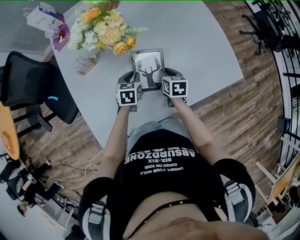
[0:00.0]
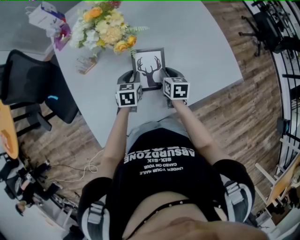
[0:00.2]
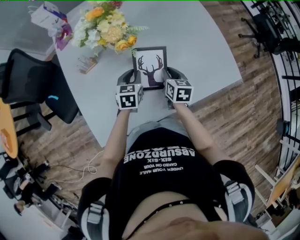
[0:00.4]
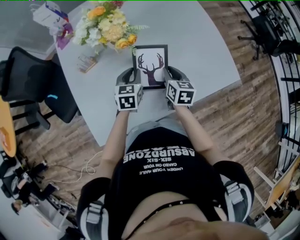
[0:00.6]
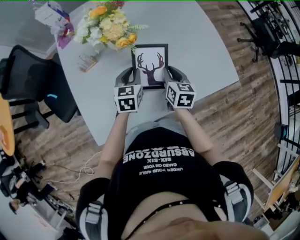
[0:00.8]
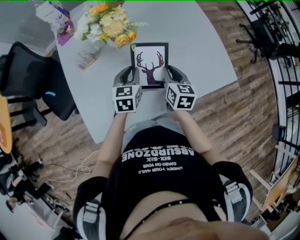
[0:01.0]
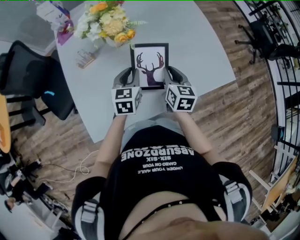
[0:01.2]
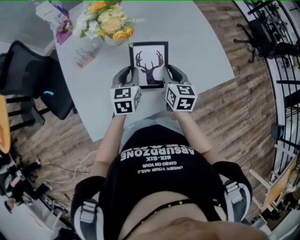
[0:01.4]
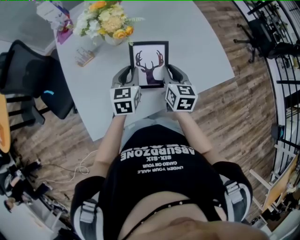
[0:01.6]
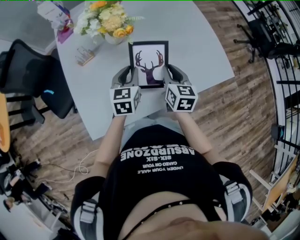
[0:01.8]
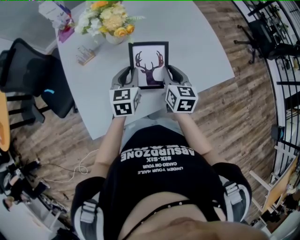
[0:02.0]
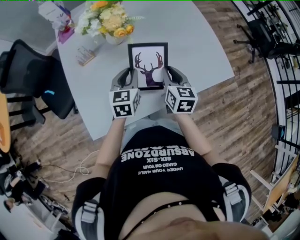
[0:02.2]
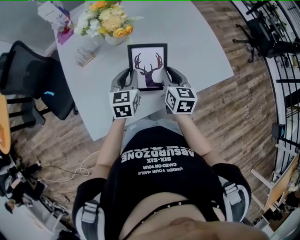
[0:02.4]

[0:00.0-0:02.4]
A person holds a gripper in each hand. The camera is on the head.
0:00.0 to 0:01.2: The two grippers go some 15 cm upward.
0:01.2 to 0:02.4: The grippers move only a little.

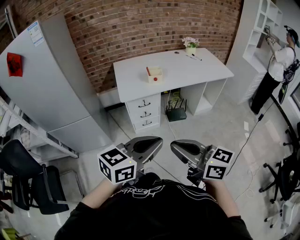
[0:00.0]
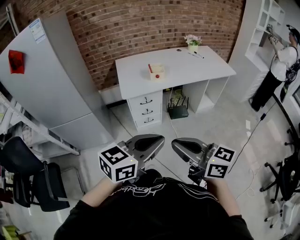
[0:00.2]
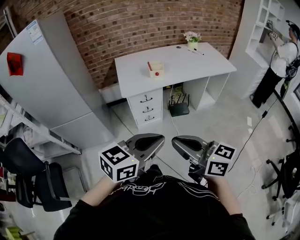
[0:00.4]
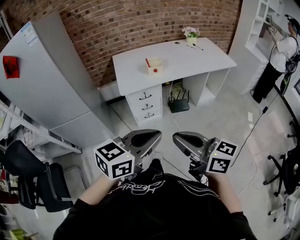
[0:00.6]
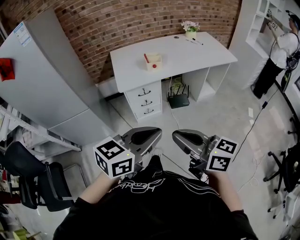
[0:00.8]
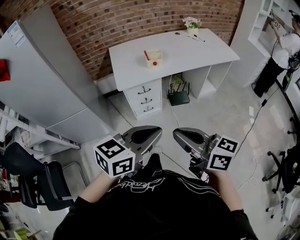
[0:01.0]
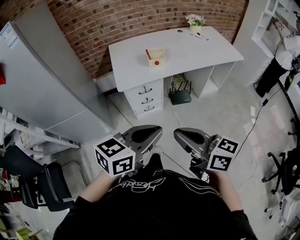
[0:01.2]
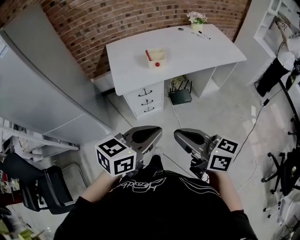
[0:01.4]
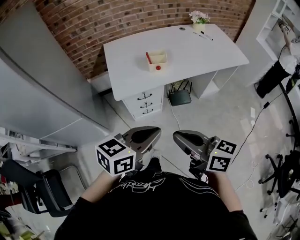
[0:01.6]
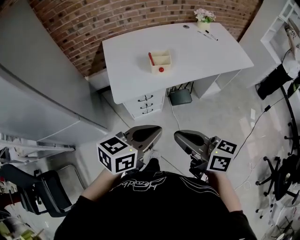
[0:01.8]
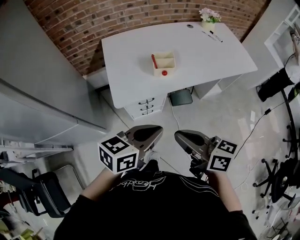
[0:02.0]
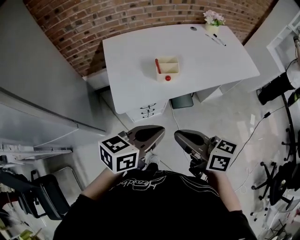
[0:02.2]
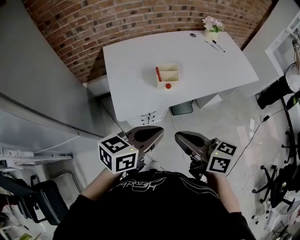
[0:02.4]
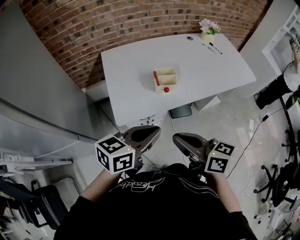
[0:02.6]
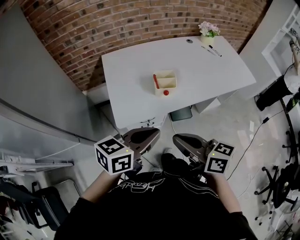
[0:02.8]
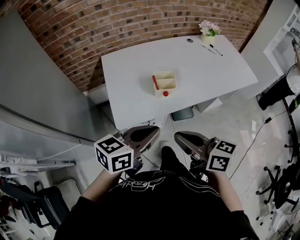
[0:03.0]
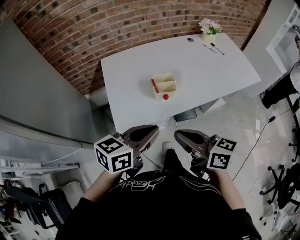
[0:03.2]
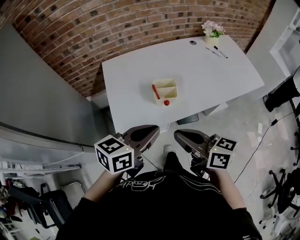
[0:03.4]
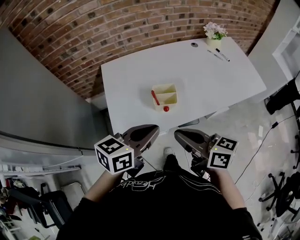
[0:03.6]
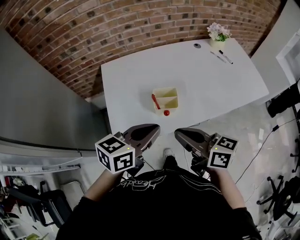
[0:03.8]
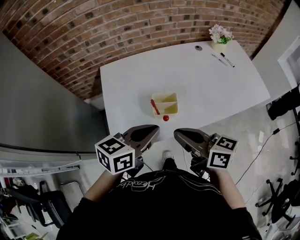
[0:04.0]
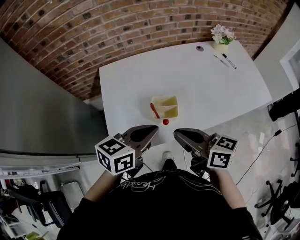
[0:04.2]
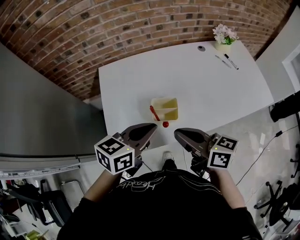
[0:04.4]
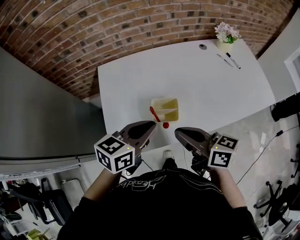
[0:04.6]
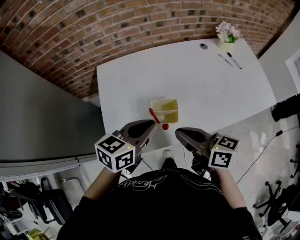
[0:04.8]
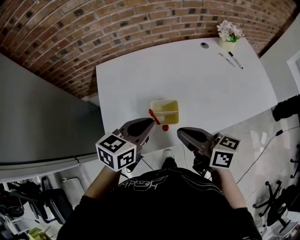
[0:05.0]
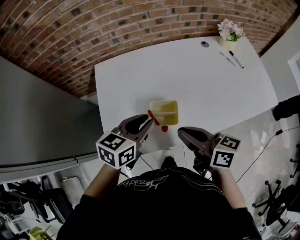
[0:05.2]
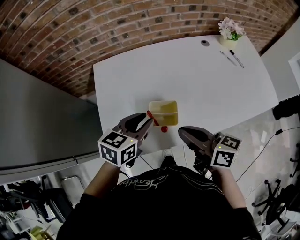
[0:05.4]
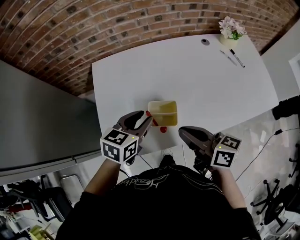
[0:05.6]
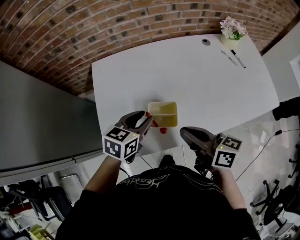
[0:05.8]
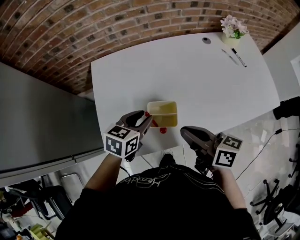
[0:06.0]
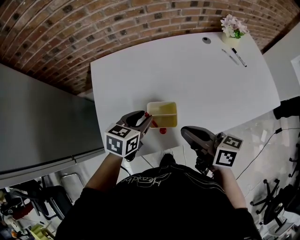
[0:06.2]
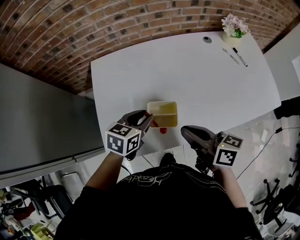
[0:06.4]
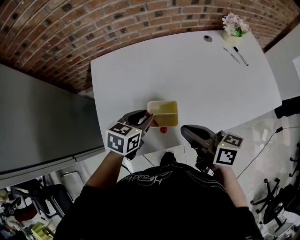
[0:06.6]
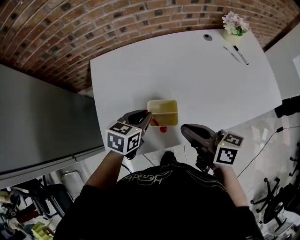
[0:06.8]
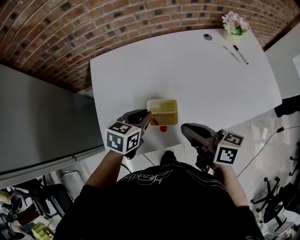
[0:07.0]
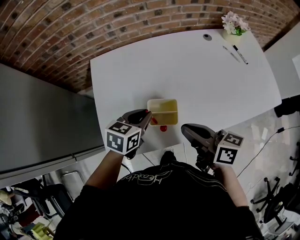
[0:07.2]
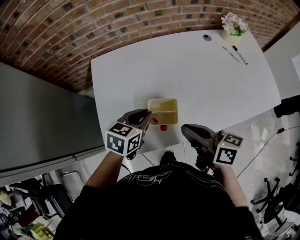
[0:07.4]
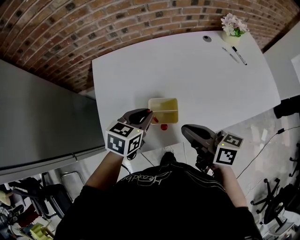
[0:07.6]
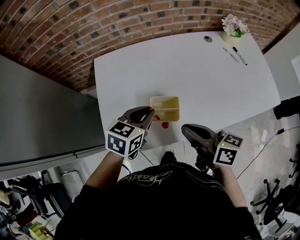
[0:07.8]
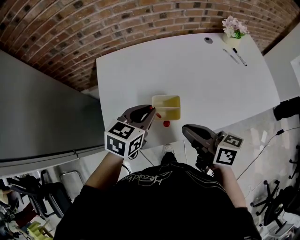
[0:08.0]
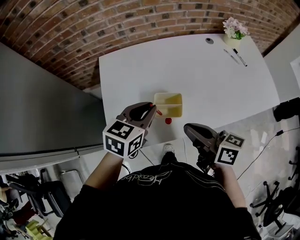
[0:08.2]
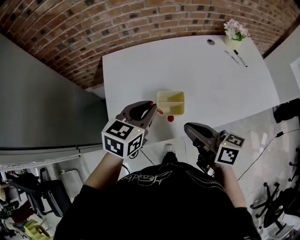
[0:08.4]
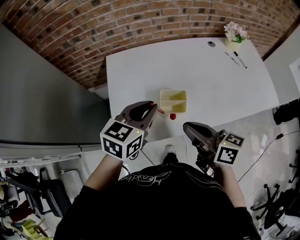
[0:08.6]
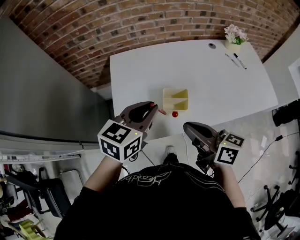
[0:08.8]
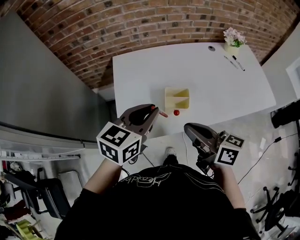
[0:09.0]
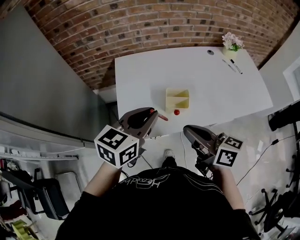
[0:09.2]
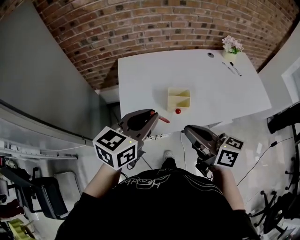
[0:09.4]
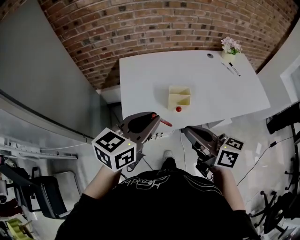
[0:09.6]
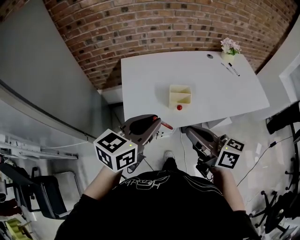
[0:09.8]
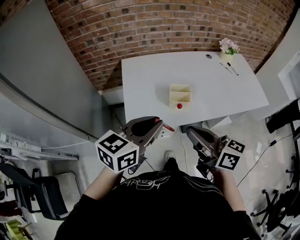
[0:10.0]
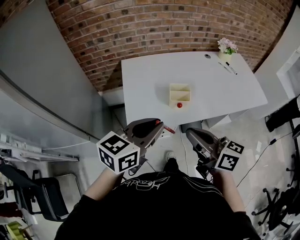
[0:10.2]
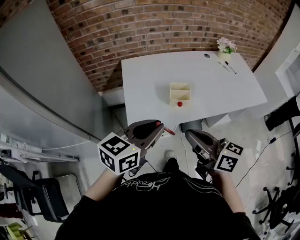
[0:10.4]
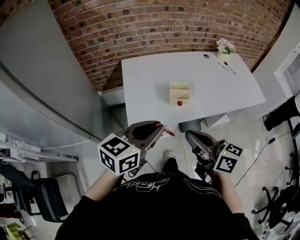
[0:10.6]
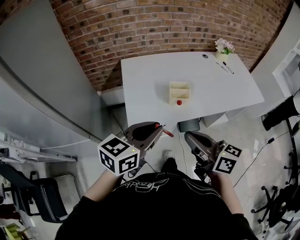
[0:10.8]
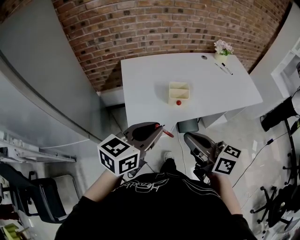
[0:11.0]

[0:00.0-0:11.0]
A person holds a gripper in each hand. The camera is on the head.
0:00.0 to 0:01.6: Both grippers travel together forward, approximately 20 cm.
0:01.6 to 0:03.2: The grippers both shift forward by some 20 cm.
0:03.2 to 0:04.8: The two grippers go some 20 cm forward.
0:04.8 to 0:06.2: The right gripper ends up roughly 5 cm from where it was; the left gripper heads downward and forward, covering some 10 cm, and opens its fingers.
0:06.2 to 0:07.8: There are only small adjustments of the grippers.
0:07.8 to 0:09.4: The right gripper shifts roughly 15 cm backward, upward and to the left. The left gripper travels upward, backward and to the left by roughly 20 cm, and changes its angle by roughly 20 degrees.
0:09.4 to 0:11.0: The two grippers go about 10 cm backward.

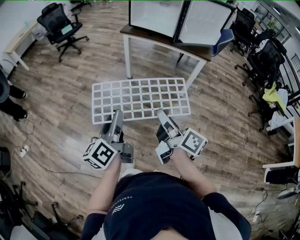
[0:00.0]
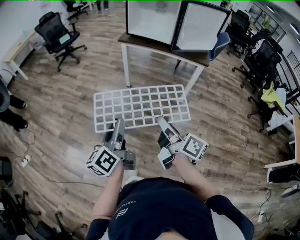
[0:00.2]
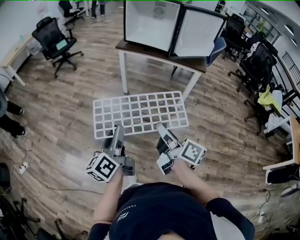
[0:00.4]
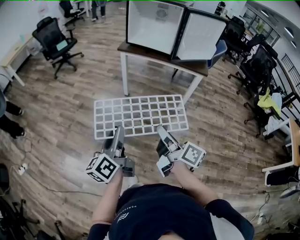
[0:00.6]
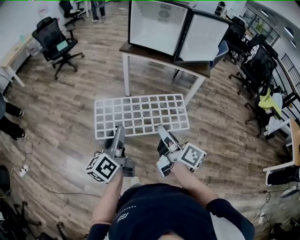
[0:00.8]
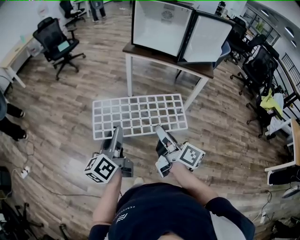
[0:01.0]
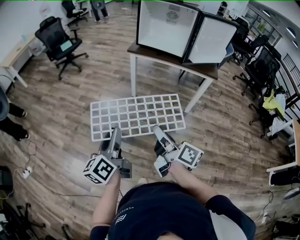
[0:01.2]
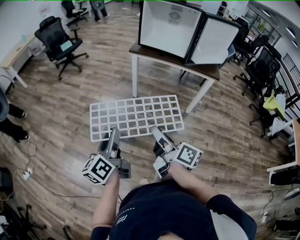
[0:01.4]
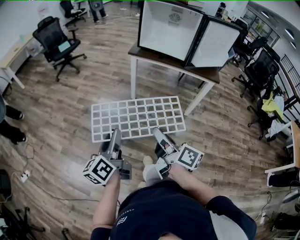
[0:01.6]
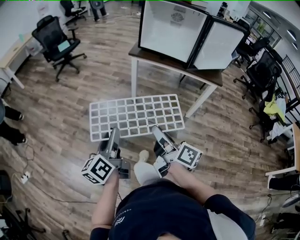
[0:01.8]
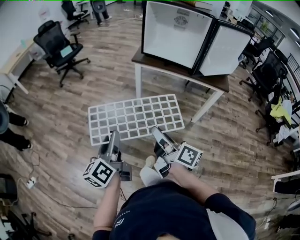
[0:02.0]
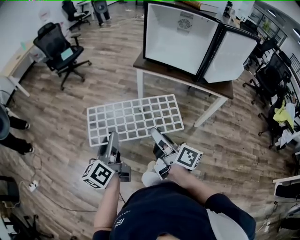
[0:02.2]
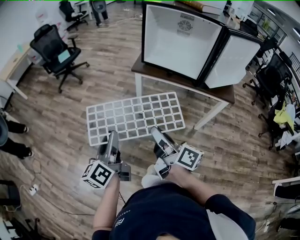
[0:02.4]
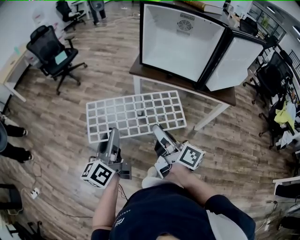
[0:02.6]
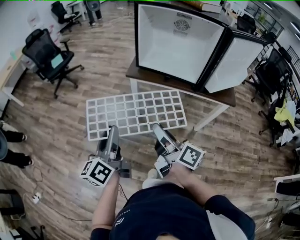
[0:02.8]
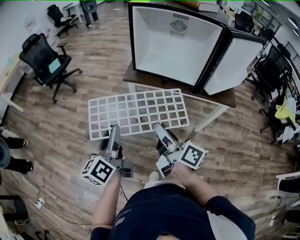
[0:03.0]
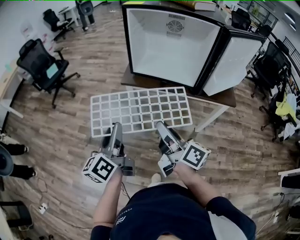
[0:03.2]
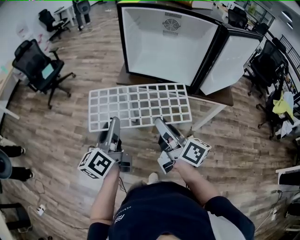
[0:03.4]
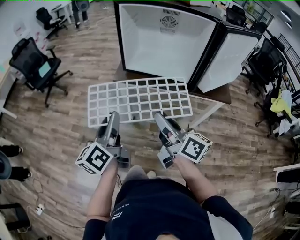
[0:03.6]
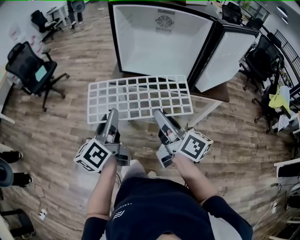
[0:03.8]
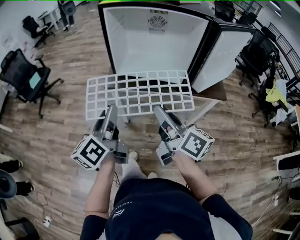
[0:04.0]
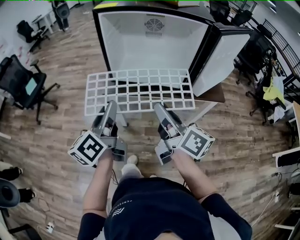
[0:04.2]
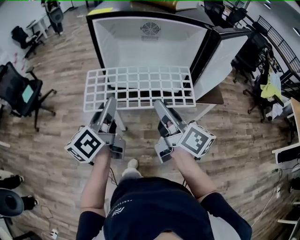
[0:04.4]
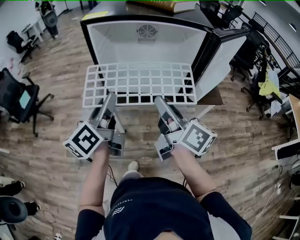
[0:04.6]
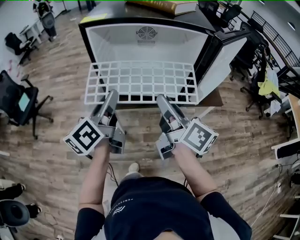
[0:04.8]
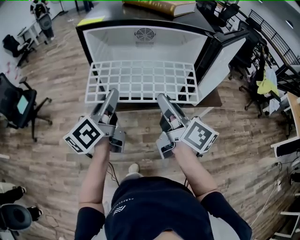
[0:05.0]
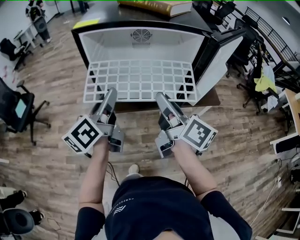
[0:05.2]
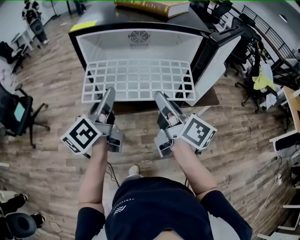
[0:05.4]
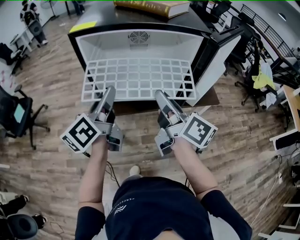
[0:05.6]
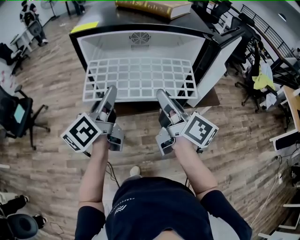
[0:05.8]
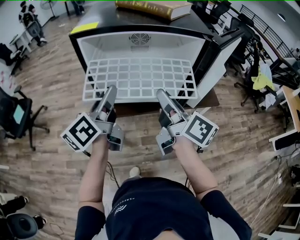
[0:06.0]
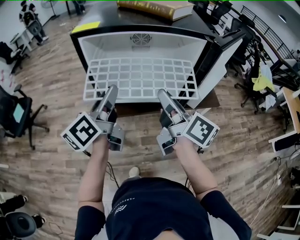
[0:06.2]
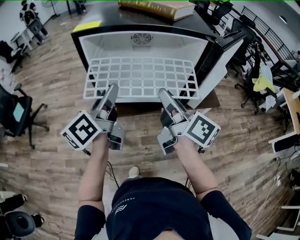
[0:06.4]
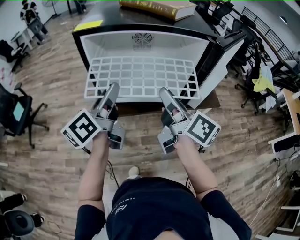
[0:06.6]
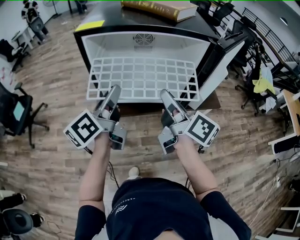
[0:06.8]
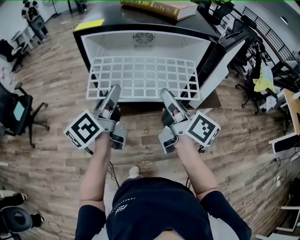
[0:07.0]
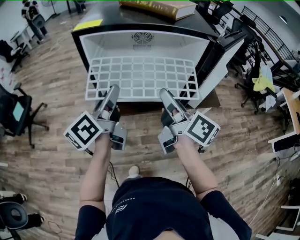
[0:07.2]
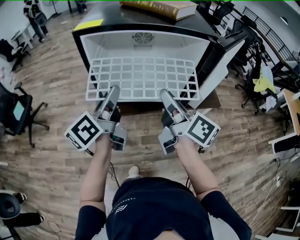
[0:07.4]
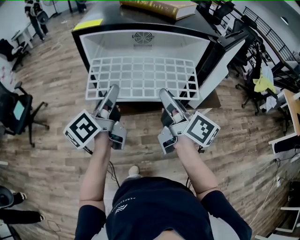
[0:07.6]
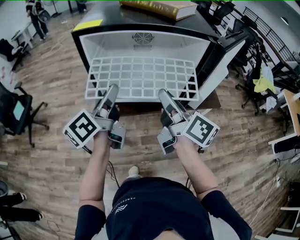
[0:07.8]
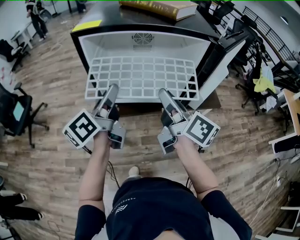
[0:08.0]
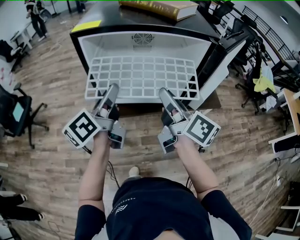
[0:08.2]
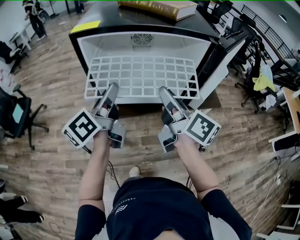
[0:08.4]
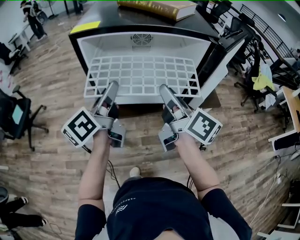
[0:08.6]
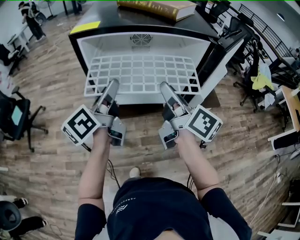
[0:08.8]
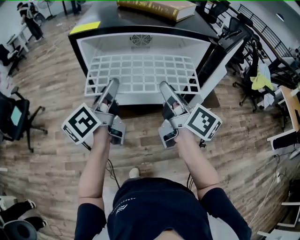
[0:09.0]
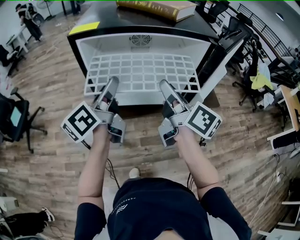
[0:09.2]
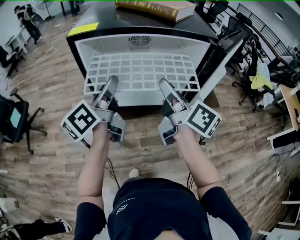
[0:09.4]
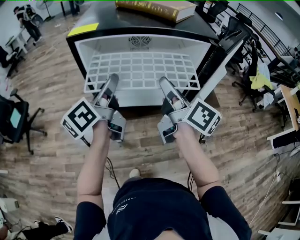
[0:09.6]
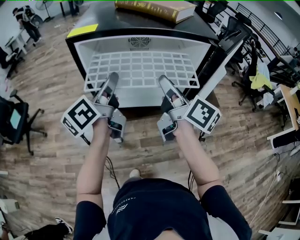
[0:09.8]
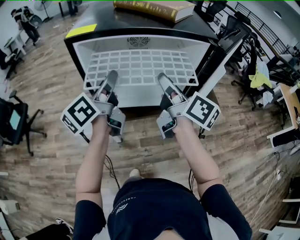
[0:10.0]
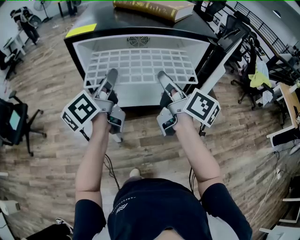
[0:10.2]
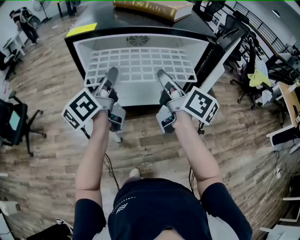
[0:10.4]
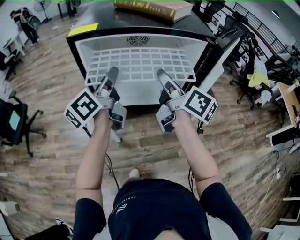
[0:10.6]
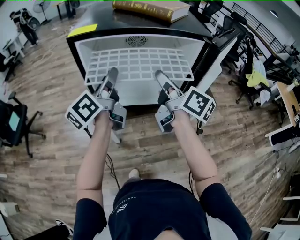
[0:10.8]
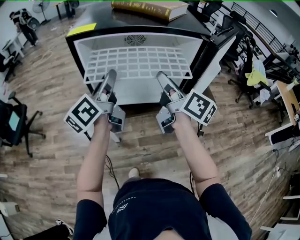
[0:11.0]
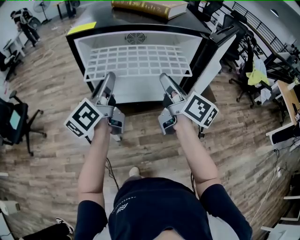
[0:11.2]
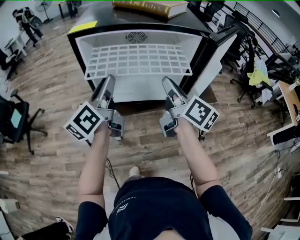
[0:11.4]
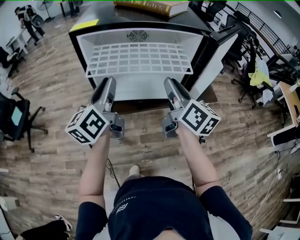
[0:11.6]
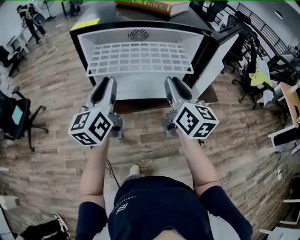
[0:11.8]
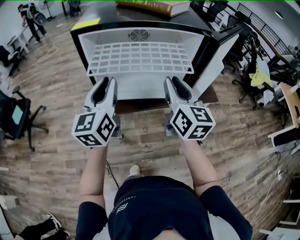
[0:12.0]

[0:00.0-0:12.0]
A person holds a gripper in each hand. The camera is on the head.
0:00.0 to 0:01.6: The grippers both shift to the left and forward by about 15 cm.
0:01.6 to 0:03.0: The two grippers go some 30 cm forward.
0:03.0 to 0:04.4: The right gripper is displaced forward, upward and to the right by about 20 cm, and swivels some 20 degrees; the left gripper shifts some 20 cm forward and to the right.
0:04.4 to 0:06.0: The two grippers go about 10 cm forward.
0:06.0 to 0:09.0: The grippers make only small movements.
0:09.0 to 0:10.4: The grippers stay close to where they were, moving slightly.
0:10.4 to 0:12.0: Both grippers move backward, some 5 cm. The right gripper swivels roughly 40 degrees; the left gripper changes its angle by roughly 40 degrees.
